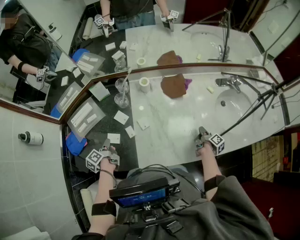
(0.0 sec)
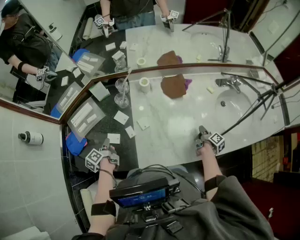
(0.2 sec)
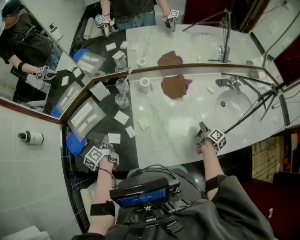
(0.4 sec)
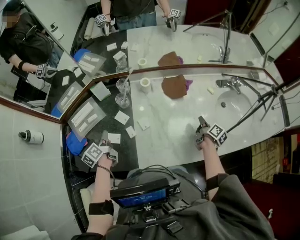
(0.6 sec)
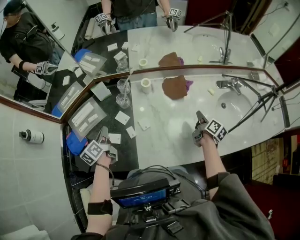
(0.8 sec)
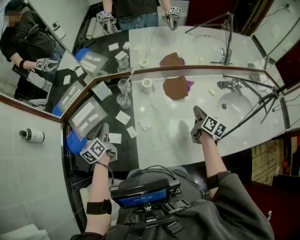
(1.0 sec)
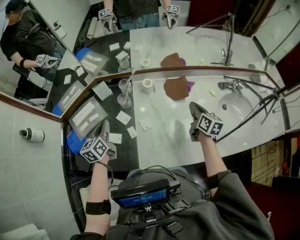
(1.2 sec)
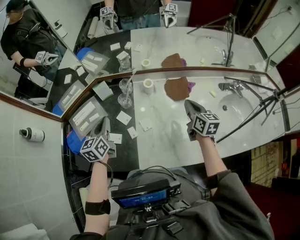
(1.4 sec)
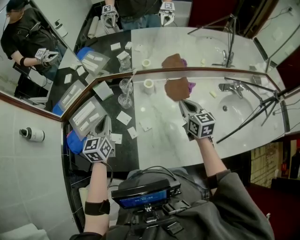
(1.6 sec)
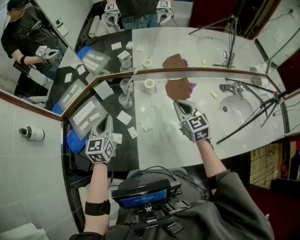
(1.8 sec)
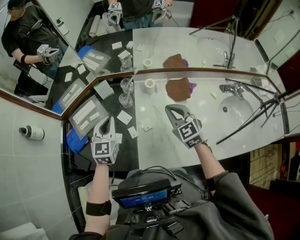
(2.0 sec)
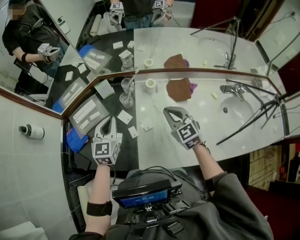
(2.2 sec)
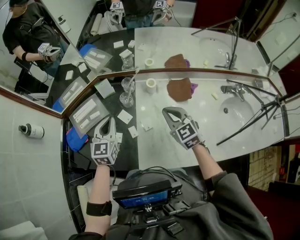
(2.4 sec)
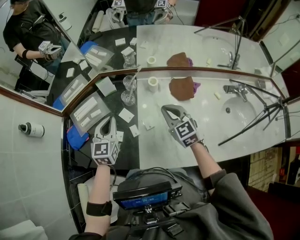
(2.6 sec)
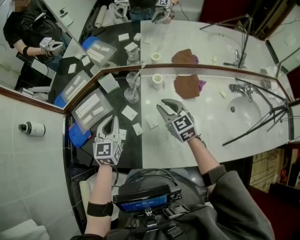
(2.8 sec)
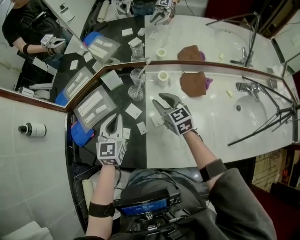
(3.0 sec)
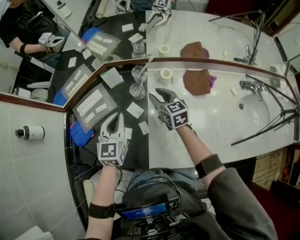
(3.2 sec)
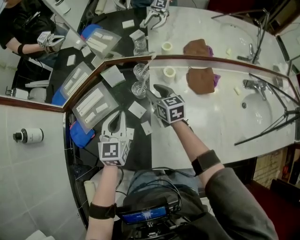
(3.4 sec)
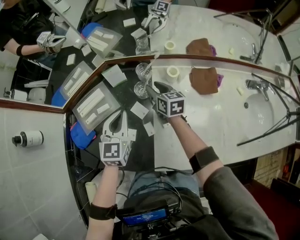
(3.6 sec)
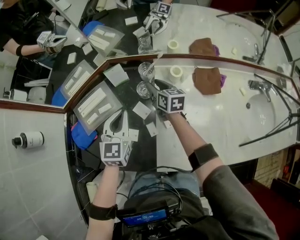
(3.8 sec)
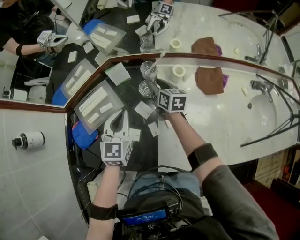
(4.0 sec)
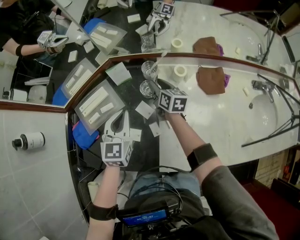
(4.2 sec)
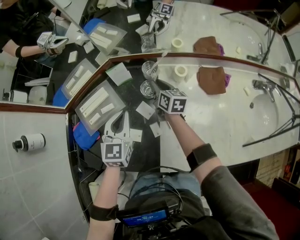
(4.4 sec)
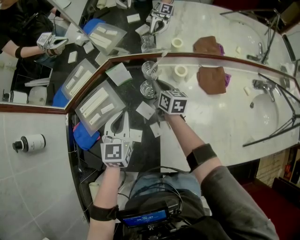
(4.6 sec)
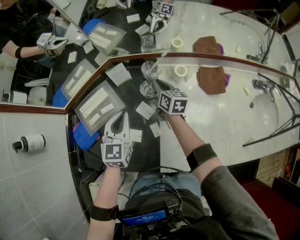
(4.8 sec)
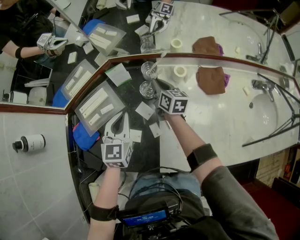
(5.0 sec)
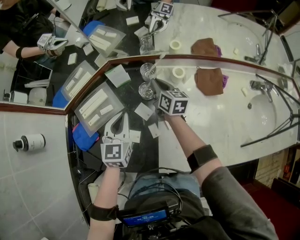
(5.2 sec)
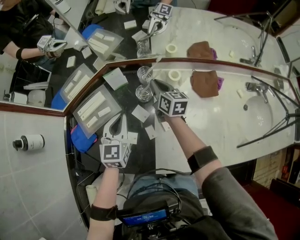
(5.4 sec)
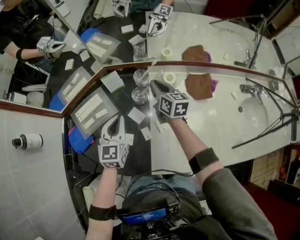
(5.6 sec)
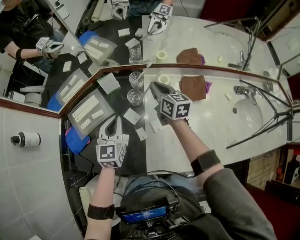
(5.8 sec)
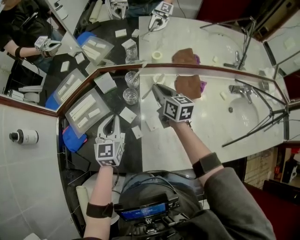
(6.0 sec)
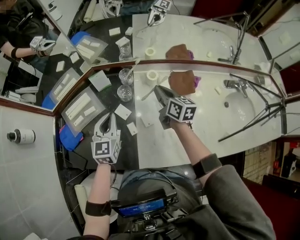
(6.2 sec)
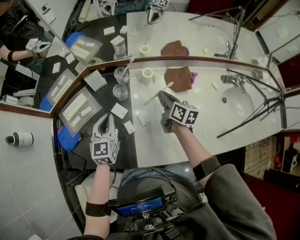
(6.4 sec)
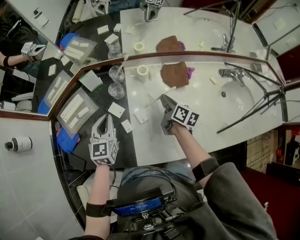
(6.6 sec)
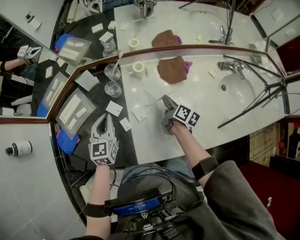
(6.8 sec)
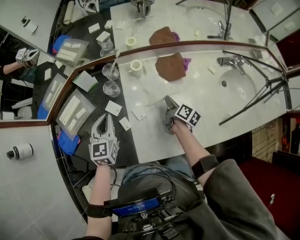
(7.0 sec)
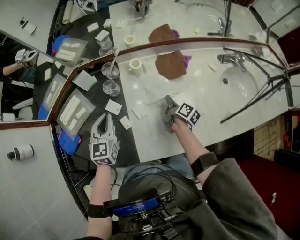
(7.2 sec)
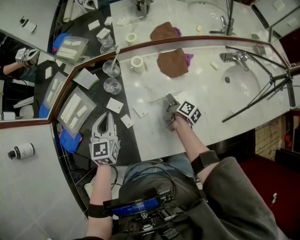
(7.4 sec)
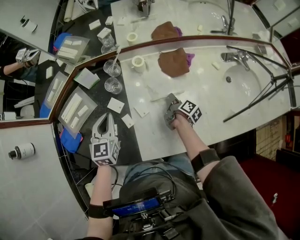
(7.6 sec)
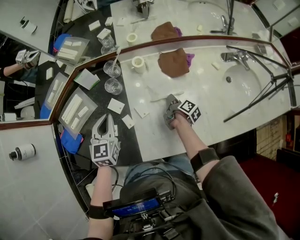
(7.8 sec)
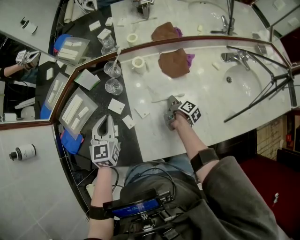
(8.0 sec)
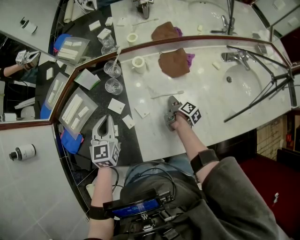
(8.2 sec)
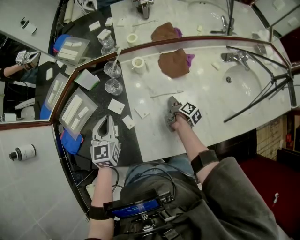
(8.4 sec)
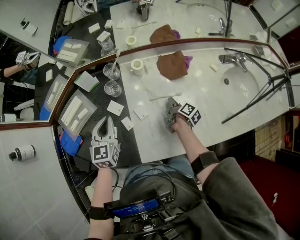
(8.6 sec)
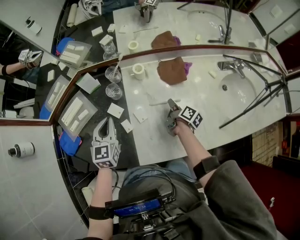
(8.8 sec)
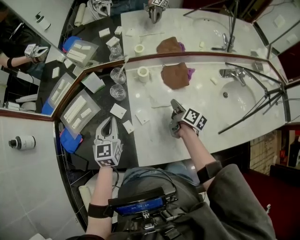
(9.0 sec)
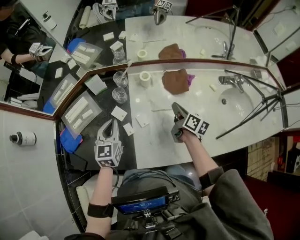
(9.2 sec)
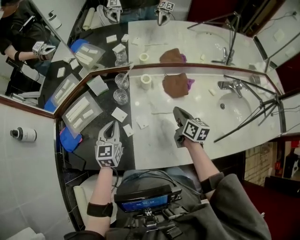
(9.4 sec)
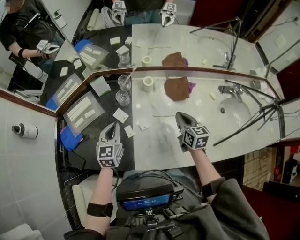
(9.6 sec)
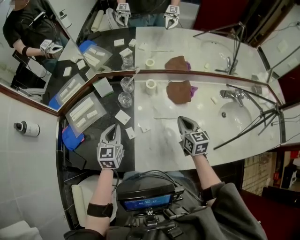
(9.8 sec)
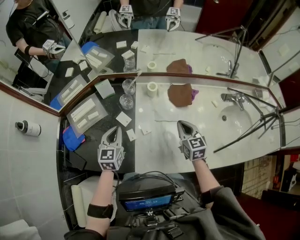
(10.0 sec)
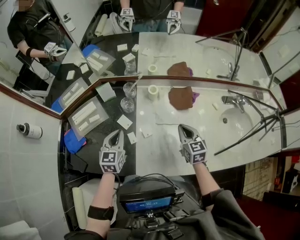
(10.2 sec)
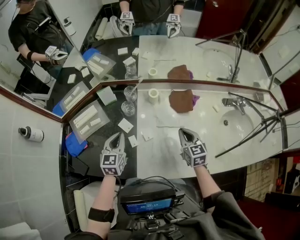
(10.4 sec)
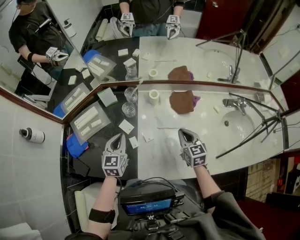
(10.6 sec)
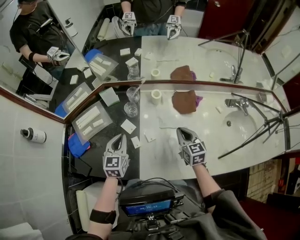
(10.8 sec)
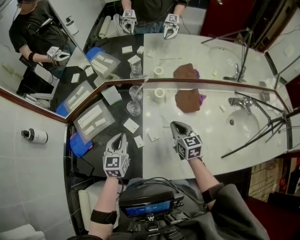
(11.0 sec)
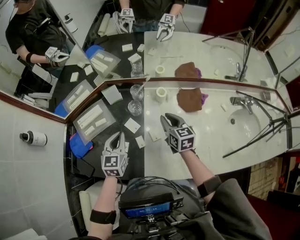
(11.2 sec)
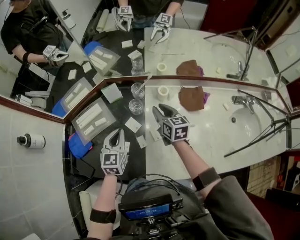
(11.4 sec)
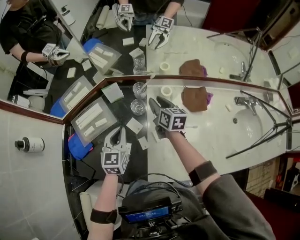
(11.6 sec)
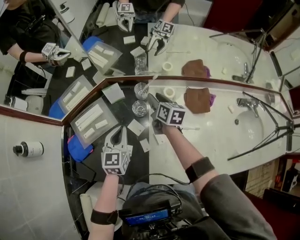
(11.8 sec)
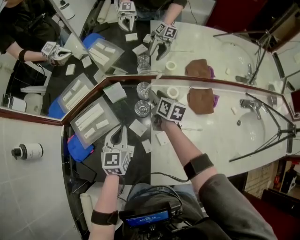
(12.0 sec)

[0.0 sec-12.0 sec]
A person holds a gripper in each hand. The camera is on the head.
0.0 sec to 1.6 sec: The left gripper moves upward and forward, approximately 20 cm, and rolls clockwise, seen from behind, by about 60 degrees. Meanwhile the right gripper travels upward, to the left and forward by some 30 cm, and rolls counterclockwise, seen from behind, by some 80 degrees.
1.6 sec to 3.0 sec: The right gripper heads to the left and forward, covering approximately 20 cm, changes its angle by roughly 20 degrees, and opens.
3.0 sec to 4.4 sec: The right gripper travels forward, downward and to the left by about 15 cm, and changes its angle by roughly 30 degrees. Meanwhile the left gripper changes place by roughly 10 cm.
4.4 sec to 6.0 sec: The right gripper travels upward and to the right by approximately 15 cm.
6.0 sec to 7.6 sec: The right gripper goes some 30 cm downward, to the right and backward, and twists approximately 60 degrees clockwise, seen from behind. The left gripper changes place by roughly 5 cm.
7.6 sec to 9.0 sec: The right gripper heads upward, covering approximately 10 cm, and turns by some 20 degrees.
9.0 sec to 10.4 sec: The right gripper is displaced upward and backward by some 10 cm, and rolls counterclockwise, seen from behind, by roughly 60 degrees.
10.4 sec to 12.0 sec: The left gripper shifts approximately 10 cm forward and to the left. The right gripper is displaced forward and to the left by roughly 30 cm, turns by roughly 40 degrees, and opens its fingers.

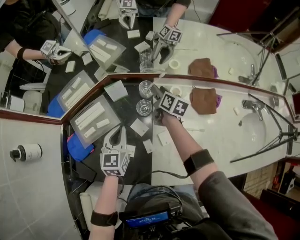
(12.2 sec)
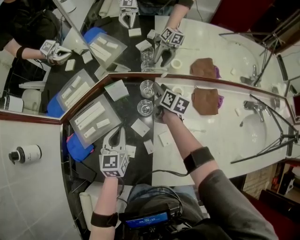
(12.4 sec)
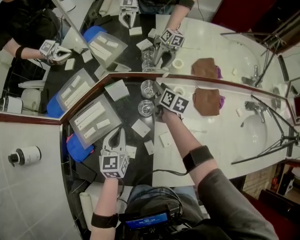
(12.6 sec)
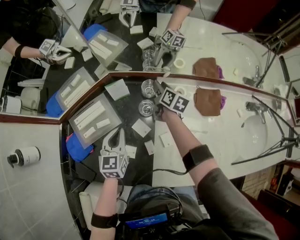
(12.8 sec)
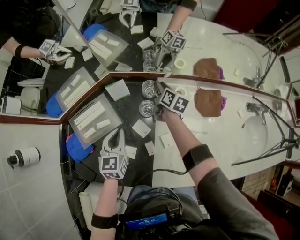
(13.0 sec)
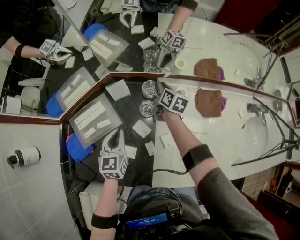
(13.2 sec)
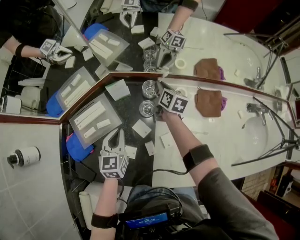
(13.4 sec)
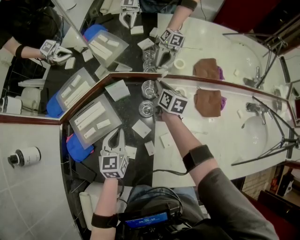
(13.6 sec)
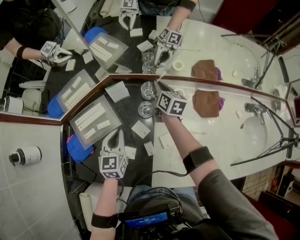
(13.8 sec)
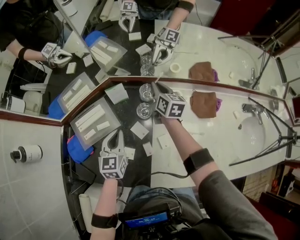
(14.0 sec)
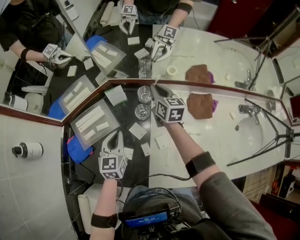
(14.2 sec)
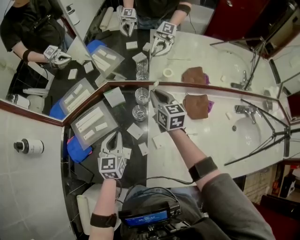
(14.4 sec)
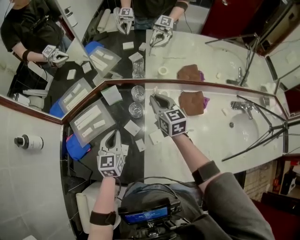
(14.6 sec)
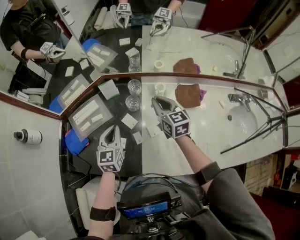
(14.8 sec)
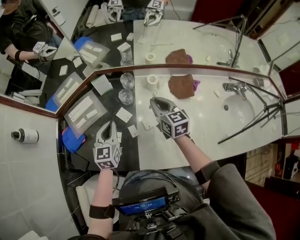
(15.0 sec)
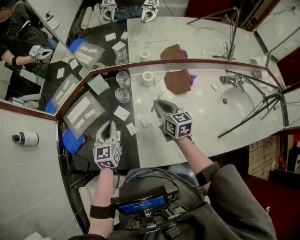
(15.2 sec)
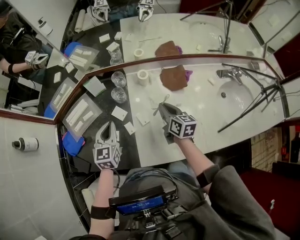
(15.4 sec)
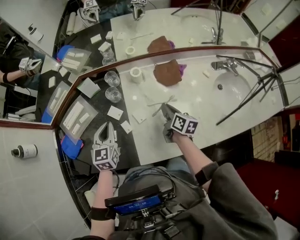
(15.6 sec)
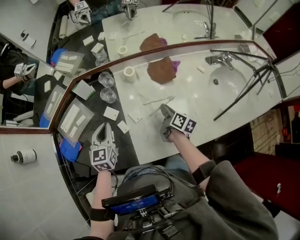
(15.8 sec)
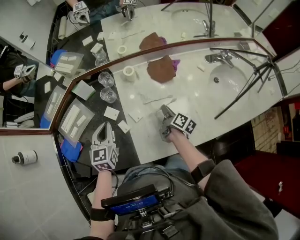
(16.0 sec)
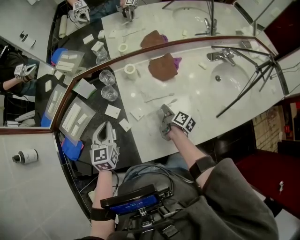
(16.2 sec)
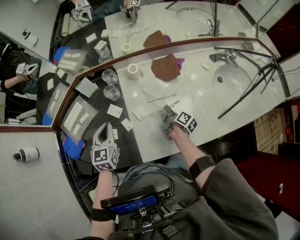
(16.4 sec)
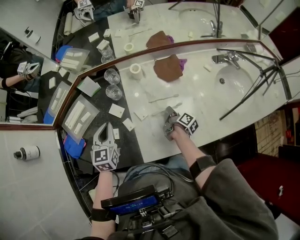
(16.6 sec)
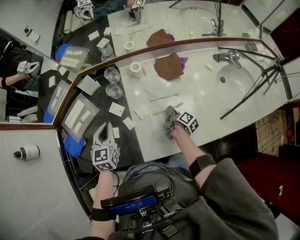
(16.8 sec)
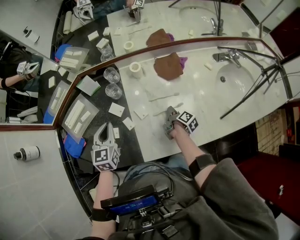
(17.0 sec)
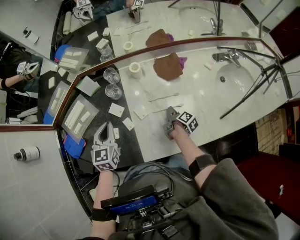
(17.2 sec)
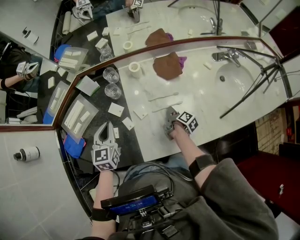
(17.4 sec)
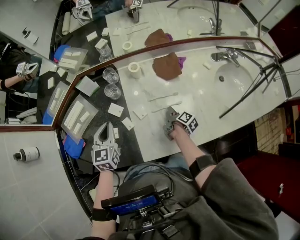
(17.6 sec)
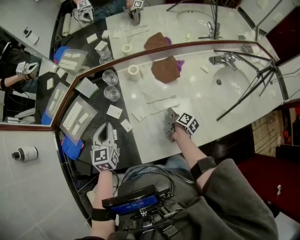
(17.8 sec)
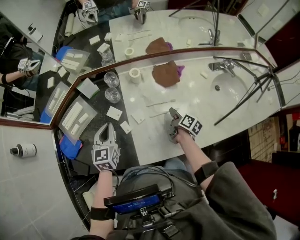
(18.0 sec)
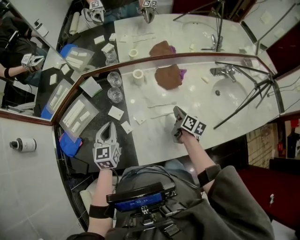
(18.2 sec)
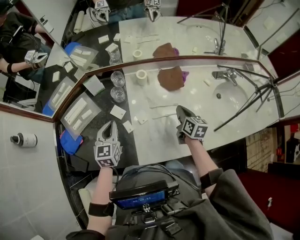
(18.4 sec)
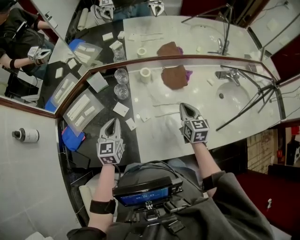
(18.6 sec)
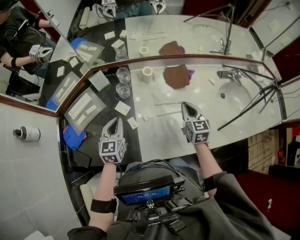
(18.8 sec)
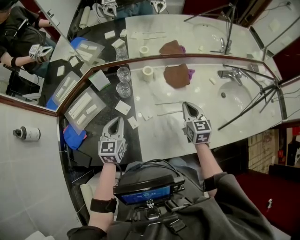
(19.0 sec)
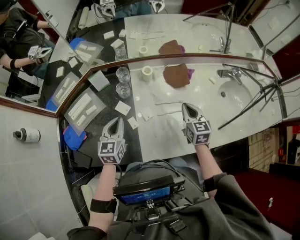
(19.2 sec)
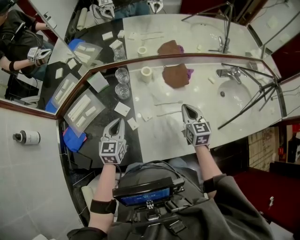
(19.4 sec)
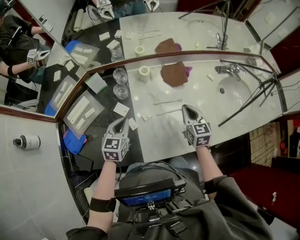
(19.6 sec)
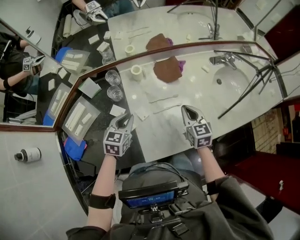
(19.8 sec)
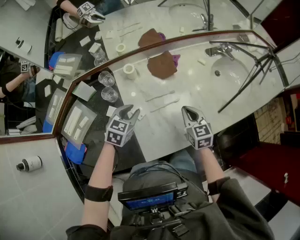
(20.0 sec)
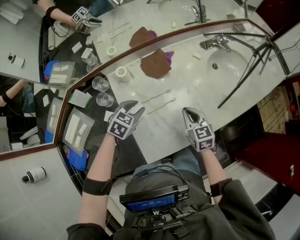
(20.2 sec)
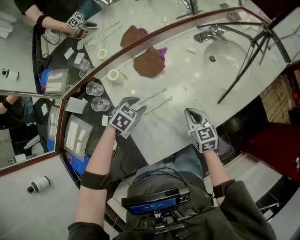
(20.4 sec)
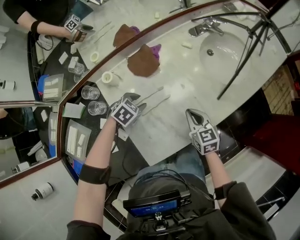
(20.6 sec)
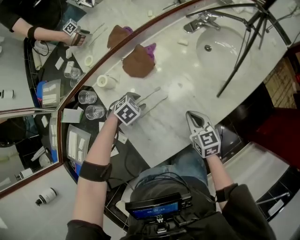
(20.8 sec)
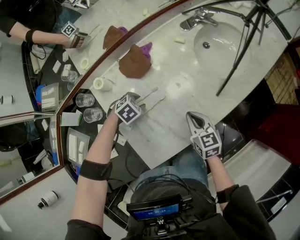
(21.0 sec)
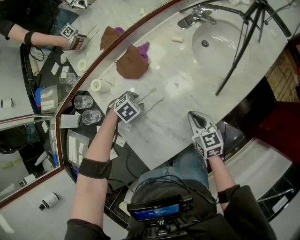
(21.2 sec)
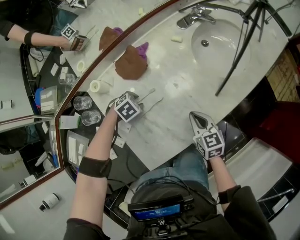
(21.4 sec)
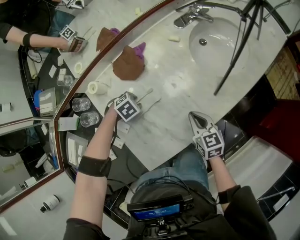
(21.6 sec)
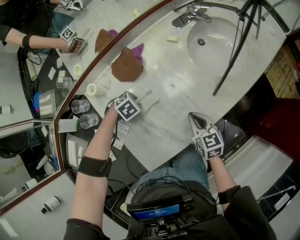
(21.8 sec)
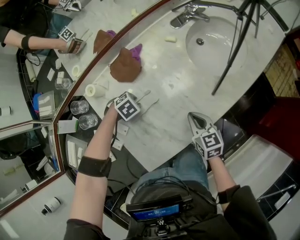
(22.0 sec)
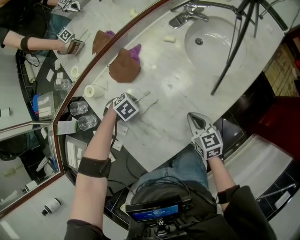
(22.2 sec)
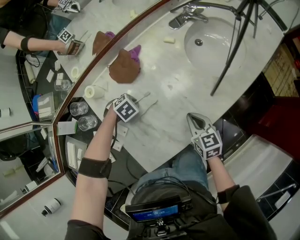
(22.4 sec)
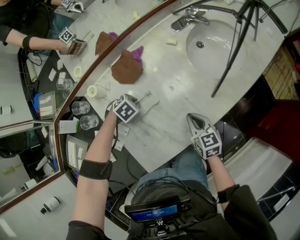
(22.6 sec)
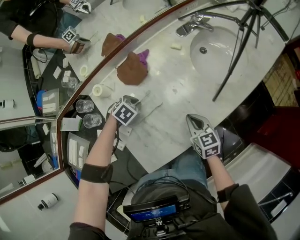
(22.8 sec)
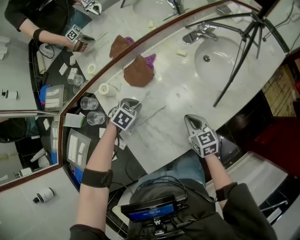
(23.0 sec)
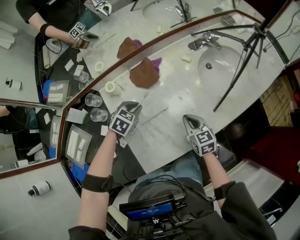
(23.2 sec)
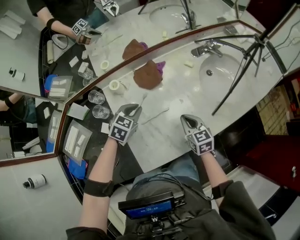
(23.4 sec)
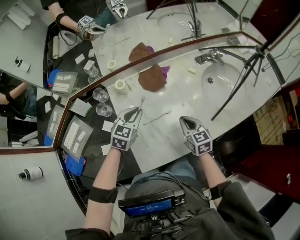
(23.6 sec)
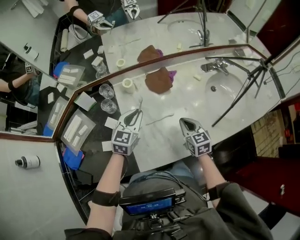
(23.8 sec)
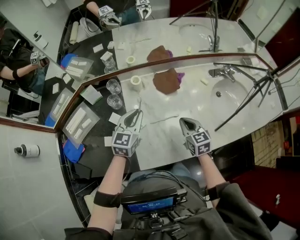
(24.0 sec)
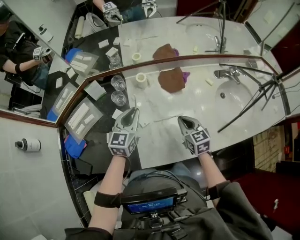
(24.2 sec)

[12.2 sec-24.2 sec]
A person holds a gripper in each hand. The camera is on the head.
12.2 sec to 13.8 sec: The right gripper closes.
13.8 sec to 15.2 sec: The left gripper moves backward, to the right and upward, about 10 cm, while the right gripper is displaced backward by some 25 cm.
15.2 sec to 16.6 sec: The right gripper travels downward, to the right and backward by about 25 cm, and rolls clockwise, seen from behind, by roughly 70 degrees.
16.6 sec to 18.2 sec: The right gripper is displaced upward by some 10 cm, and changes its angle by approximately 30 degrees.
18.2 sec to 19.8 sec: The left gripper travels to the right by some 10 cm, and rotates some 30 degrees. The right gripper moves upward, some 5 cm, and rolls counterclockwise, seen from behind, by about 40 degrees.
19.8 sec to 21.2 sec: The left gripper ends up roughly 25 cm from where it was, tilts its fingers approximately 40 degrees downward, and opens its fingers. Meanwhile the right gripper changes place by about 20 cm.
21.2 sec to 22.6 sec: The left gripper closes.
22.6 sec to 24.2 sec: The left gripper goes approximately 25 cm upward, and tilts its fingers roughly 60 degrees upward, while the right gripper moves about 20 cm, and swivels about 30 degrees.
